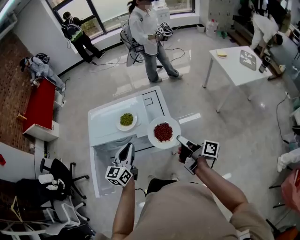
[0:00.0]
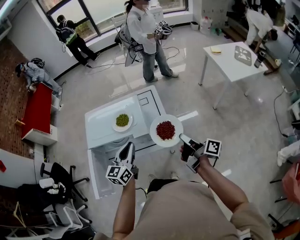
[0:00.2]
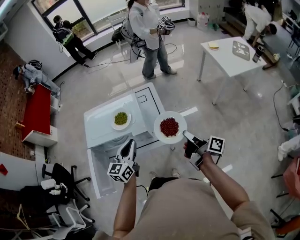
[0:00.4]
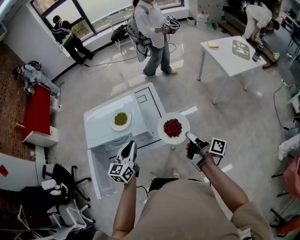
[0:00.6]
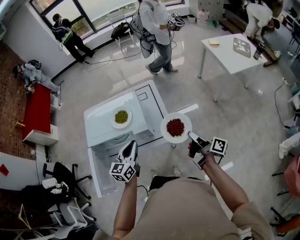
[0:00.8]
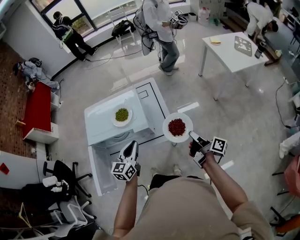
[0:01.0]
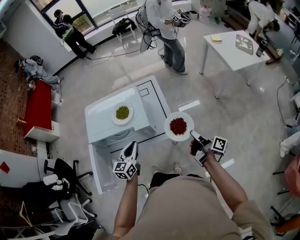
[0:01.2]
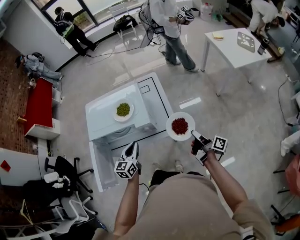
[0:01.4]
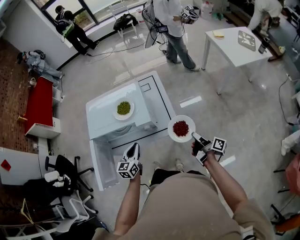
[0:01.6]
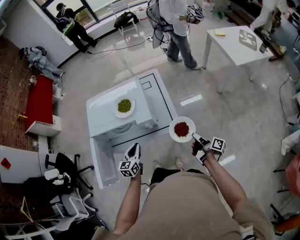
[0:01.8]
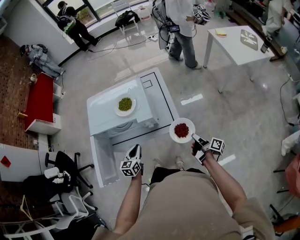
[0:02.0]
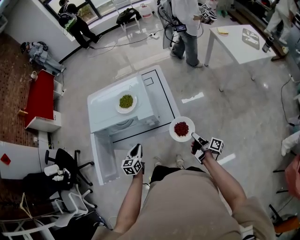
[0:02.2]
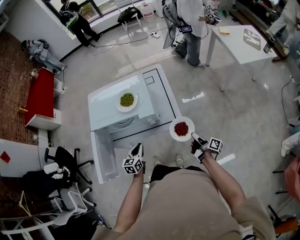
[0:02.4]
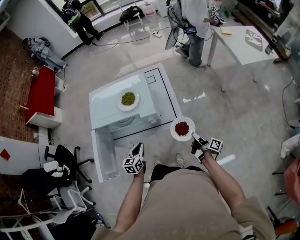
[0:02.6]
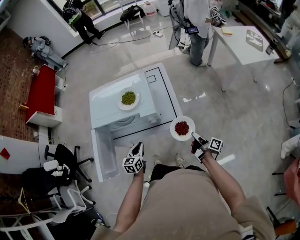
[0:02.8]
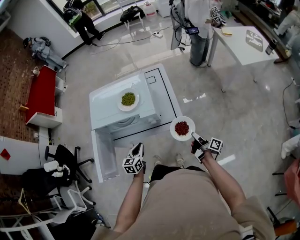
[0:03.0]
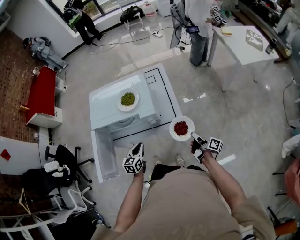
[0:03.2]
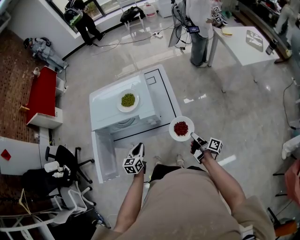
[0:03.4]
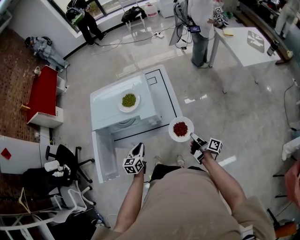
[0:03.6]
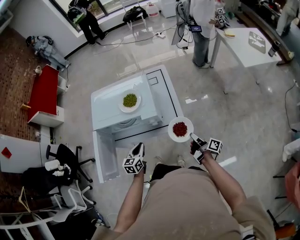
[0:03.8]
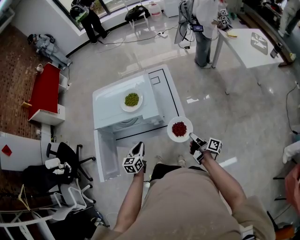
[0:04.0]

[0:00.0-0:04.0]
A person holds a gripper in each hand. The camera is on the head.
0.0 to 1.4 s: The right gripper moves downward and to the right, approximately 15 cm, while the left gripper moves downward, some 10 cm.
1.4 to 2.6 s: The two grippers go about 10 cm downward.
2.6 to 4.0 s: There are only small adjustments of the grippers.

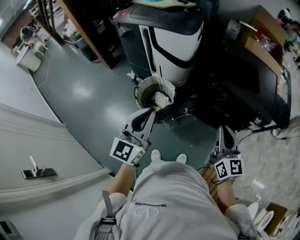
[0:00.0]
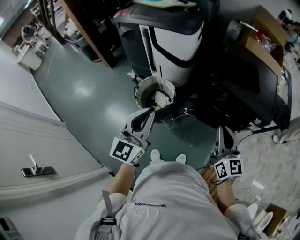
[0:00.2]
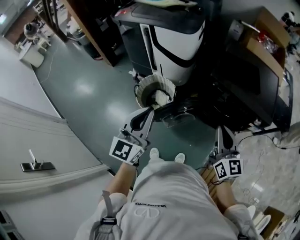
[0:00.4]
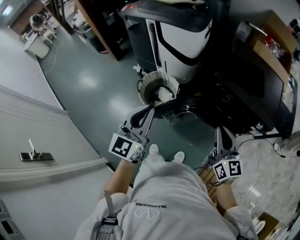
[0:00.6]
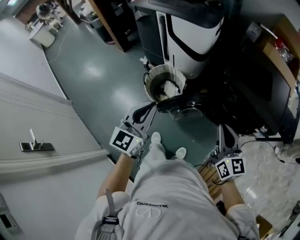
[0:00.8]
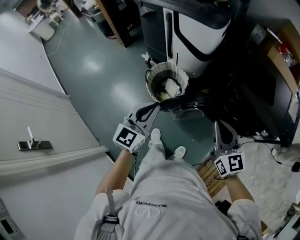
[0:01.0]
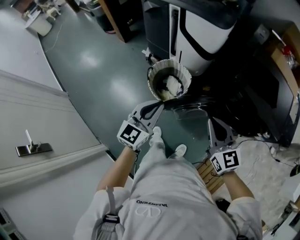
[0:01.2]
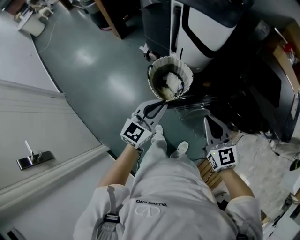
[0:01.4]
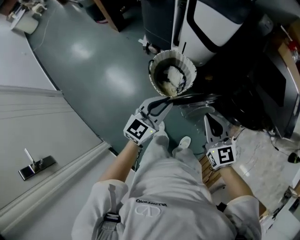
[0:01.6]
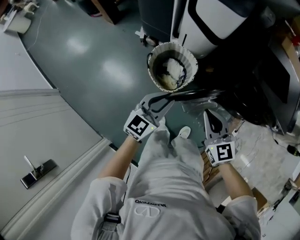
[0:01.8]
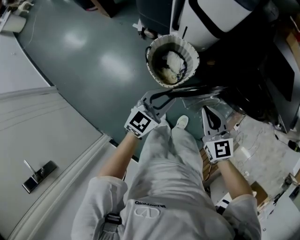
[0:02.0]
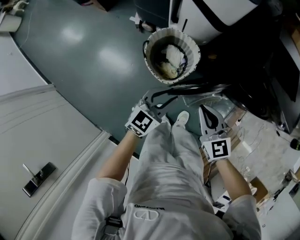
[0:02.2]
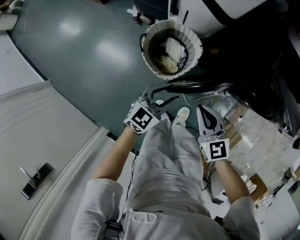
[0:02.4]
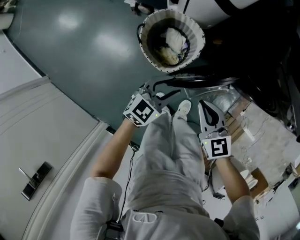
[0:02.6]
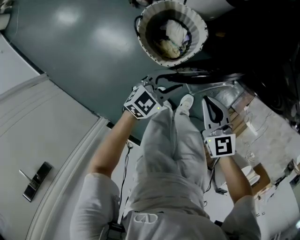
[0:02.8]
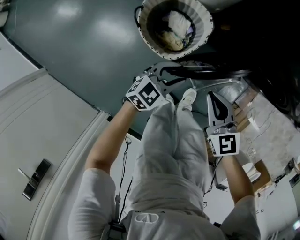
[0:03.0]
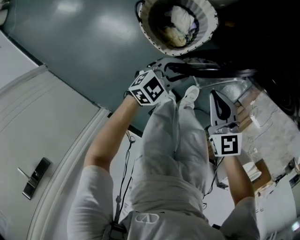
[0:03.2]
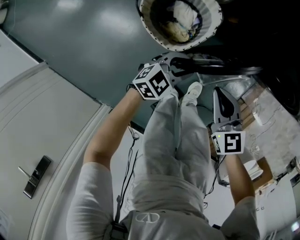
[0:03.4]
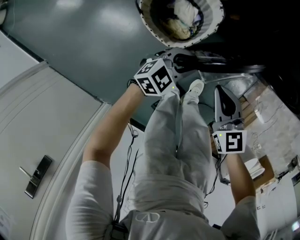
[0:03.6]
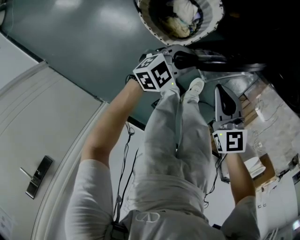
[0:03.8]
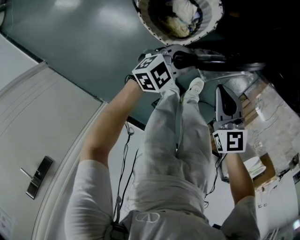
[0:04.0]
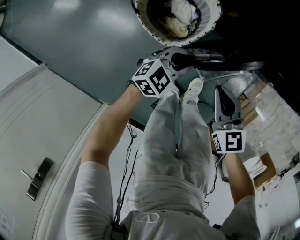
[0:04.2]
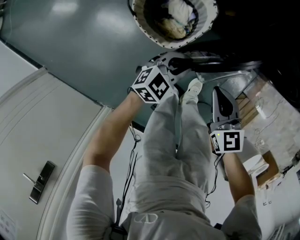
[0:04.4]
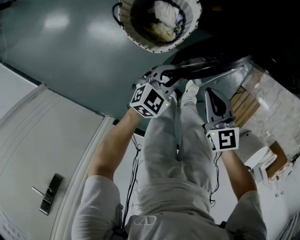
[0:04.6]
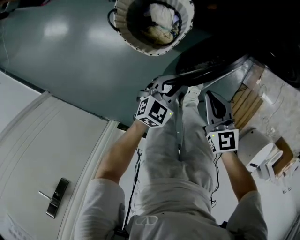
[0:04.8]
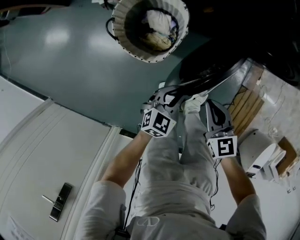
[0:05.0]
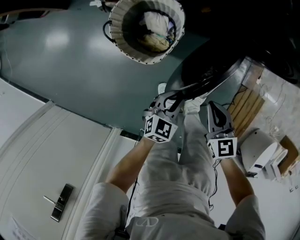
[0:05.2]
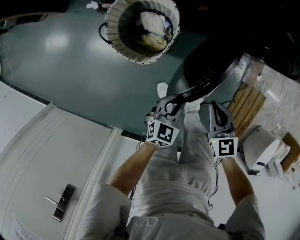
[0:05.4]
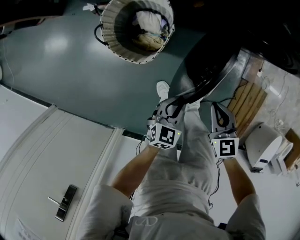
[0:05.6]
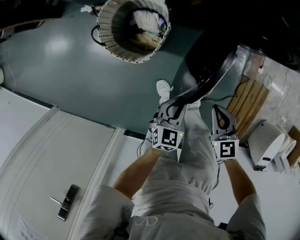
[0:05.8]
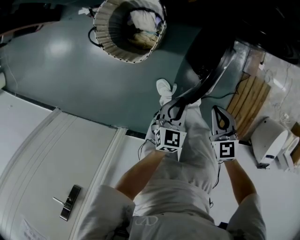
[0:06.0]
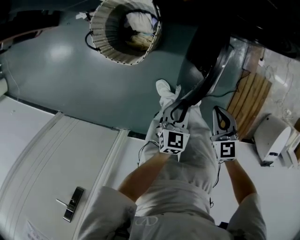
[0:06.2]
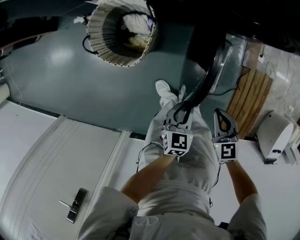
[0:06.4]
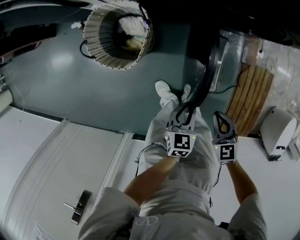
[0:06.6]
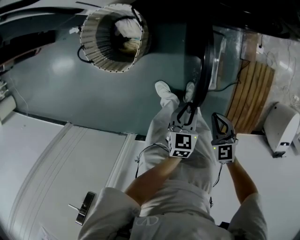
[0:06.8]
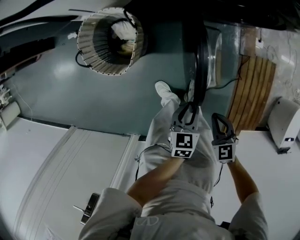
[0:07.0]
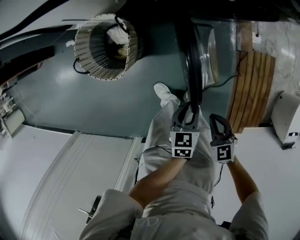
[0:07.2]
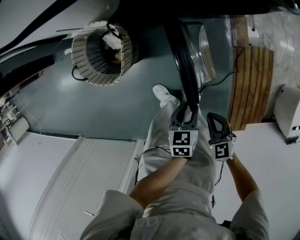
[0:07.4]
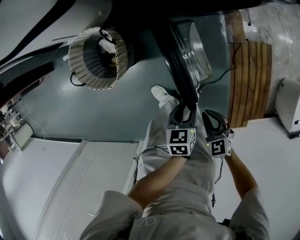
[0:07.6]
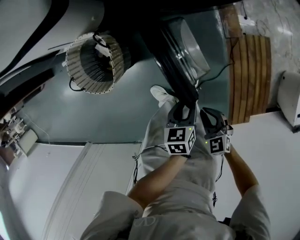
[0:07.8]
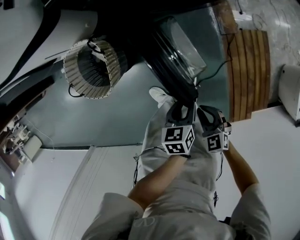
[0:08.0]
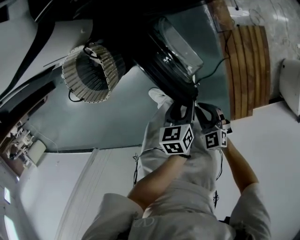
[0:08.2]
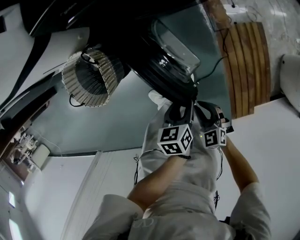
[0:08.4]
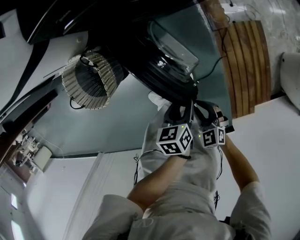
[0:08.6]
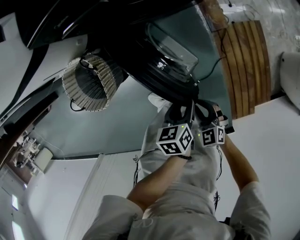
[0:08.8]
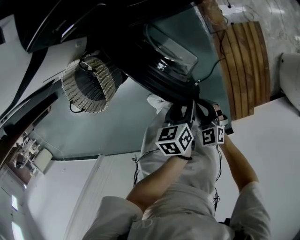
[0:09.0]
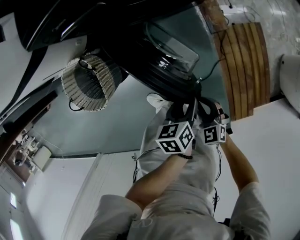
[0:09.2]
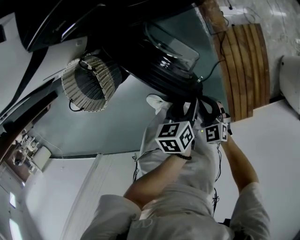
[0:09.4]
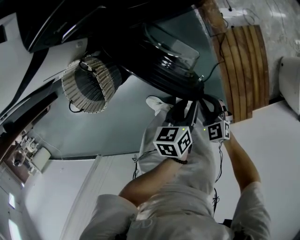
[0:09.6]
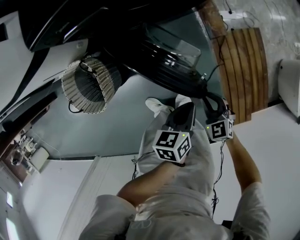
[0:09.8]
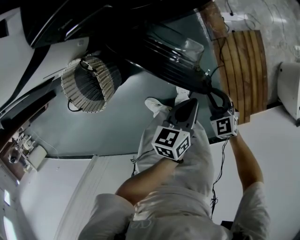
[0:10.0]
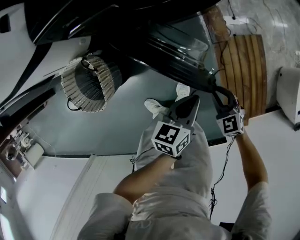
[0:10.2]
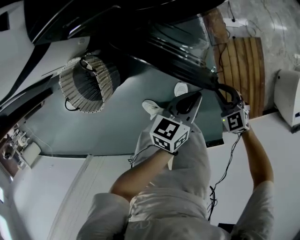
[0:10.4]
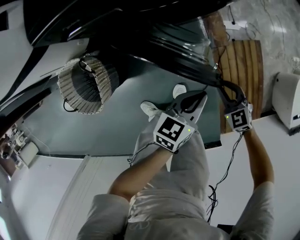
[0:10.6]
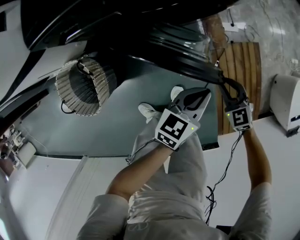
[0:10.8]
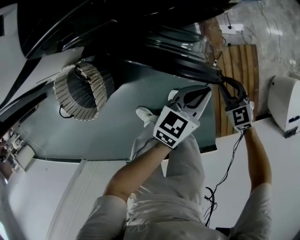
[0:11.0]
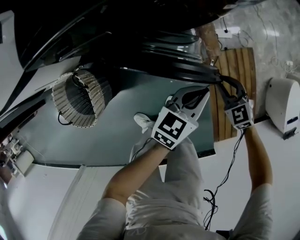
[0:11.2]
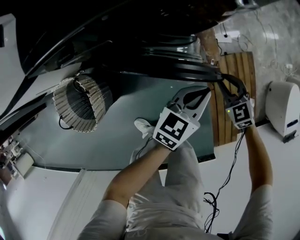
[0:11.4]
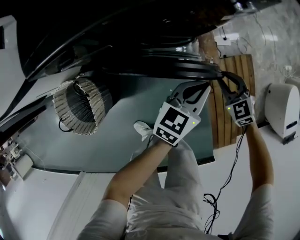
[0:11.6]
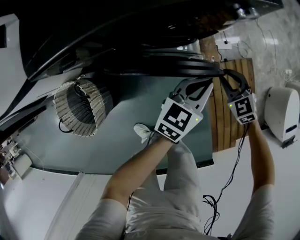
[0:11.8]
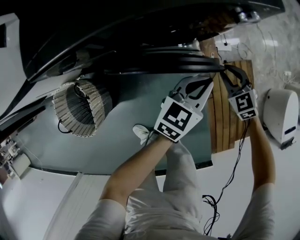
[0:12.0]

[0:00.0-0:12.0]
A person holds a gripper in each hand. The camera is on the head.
0.0 to 1.6 s: The right gripper is displaced to the left and downward by about 25 cm, and changes its angle by roughly 30 degrees. The left gripper moves downward, to the left and forward, some 20 cm.
1.6 to 3.0 s: The grippers both shift downward by roughly 30 cm. The left gripper turns by approximately 30 degrees, and opens its fingers.
3.0 to 4.4 s: The left gripper moves about 5 cm. Meanwhile the right gripper goes about 5 cm downward.
4.4 to 6.0 s: The grippers both shift to the right and backward by about 20 cm. The left gripper swivels approximately 20 degrees.
6.0 to 7.6 s: The right gripper travels to the right, backward and downward by some 15 cm, while the left gripper goes about 15 cm to the right, and turns by some 20 degrees.
7.6 to 9.0 s: The left gripper heads to the right, covering approximately 10 cm; the right gripper shifts roughly 5 cm to the right.
9.0 to 10.4 s: The right gripper moves forward and to the right, roughly 15 cm. Meanwhile the left gripper heads forward and to the right, covering approximately 10 cm, rotates roughly 30 degrees, and closes.
10.4 to 12.0 s: Both grippers travel together forward, roughly 20 cm. The left gripper swivels approximately 20 degrees.

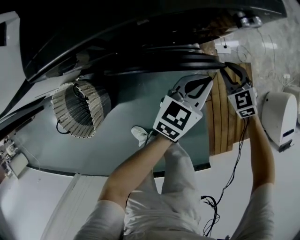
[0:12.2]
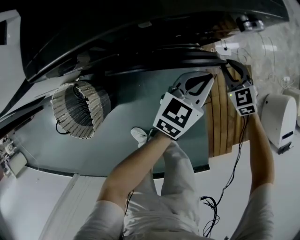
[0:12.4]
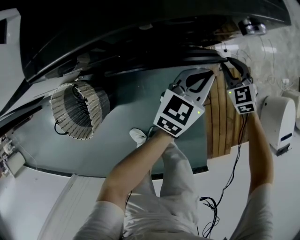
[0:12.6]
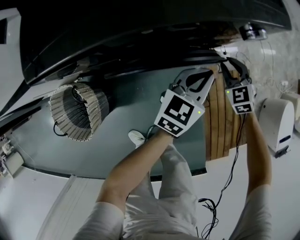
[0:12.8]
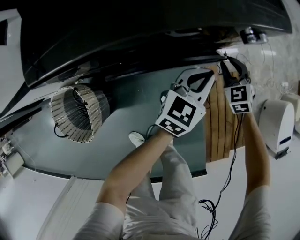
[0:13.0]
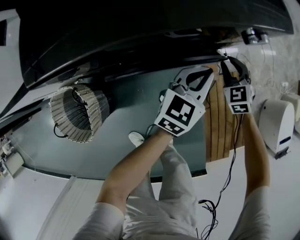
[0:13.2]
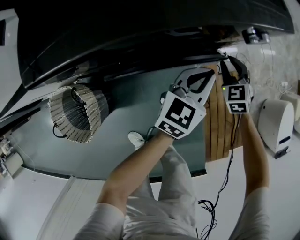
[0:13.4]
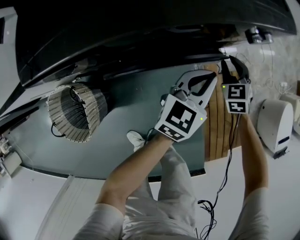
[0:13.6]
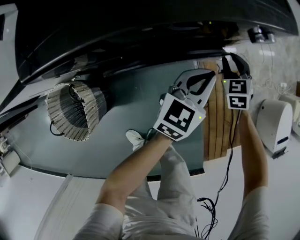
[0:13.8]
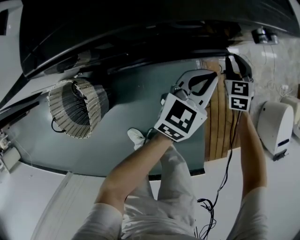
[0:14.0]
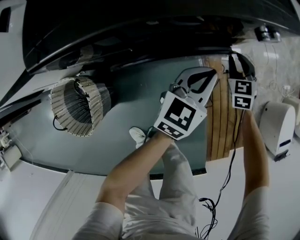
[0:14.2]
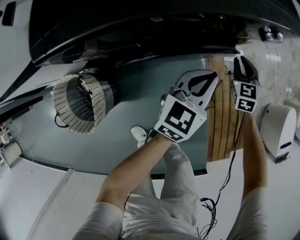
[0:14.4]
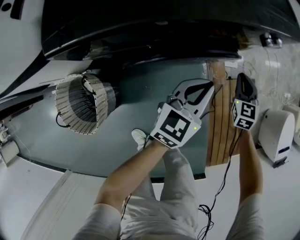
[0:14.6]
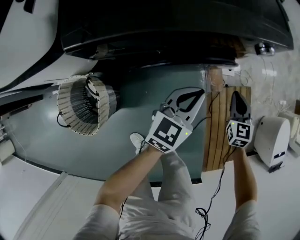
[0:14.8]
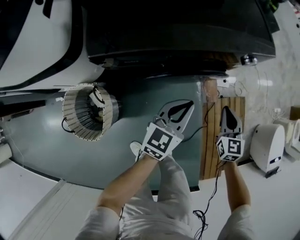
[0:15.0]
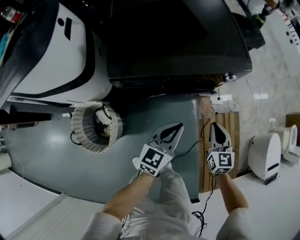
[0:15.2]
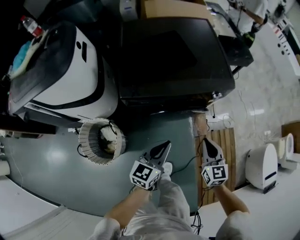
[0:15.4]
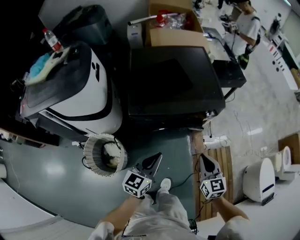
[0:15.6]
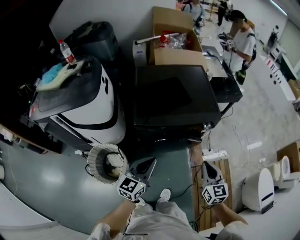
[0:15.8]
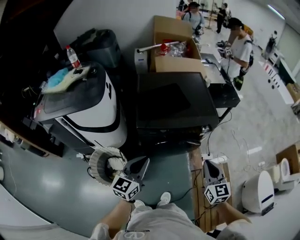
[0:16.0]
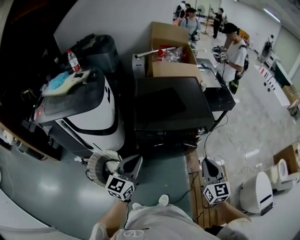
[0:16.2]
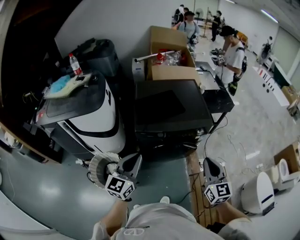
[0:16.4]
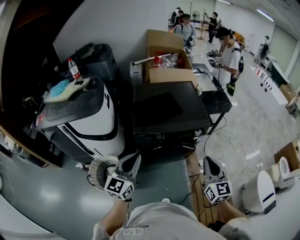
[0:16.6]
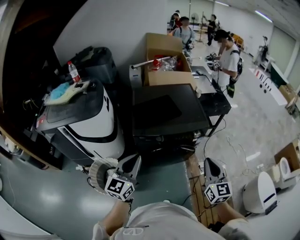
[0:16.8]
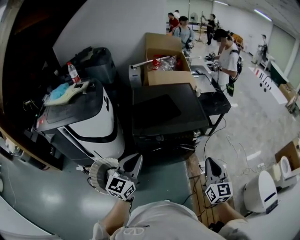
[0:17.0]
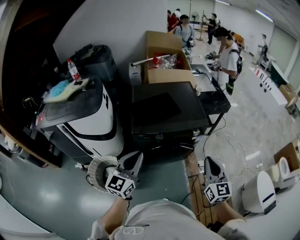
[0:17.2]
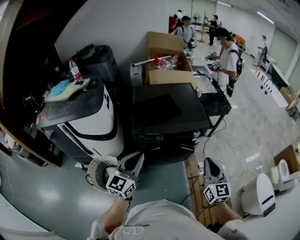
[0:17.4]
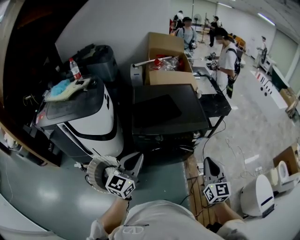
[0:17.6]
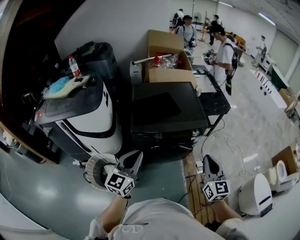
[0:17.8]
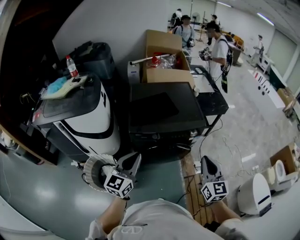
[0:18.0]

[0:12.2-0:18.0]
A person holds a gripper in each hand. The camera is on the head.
12.2 to 13.6 s: The right gripper is displaced forward by approximately 5 cm.
13.6 to 15.0 s: The left gripper is displaced backward, to the left and upward by about 15 cm; the right gripper shifts roughly 20 cm backward and upward, turns by about 30 degrees, and closes its fingers.
15.0 to 16.6 s: The left gripper heads upward, backward and to the left, covering about 50 cm, and changes its angle by approximately 30 degrees. The right gripper heads upward, covering roughly 40 cm, and turns by some 30 degrees.
16.6 to 18.0 s: The grippers move only a little.

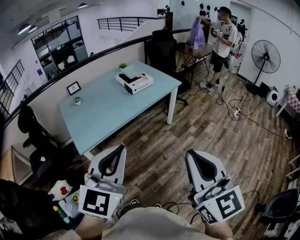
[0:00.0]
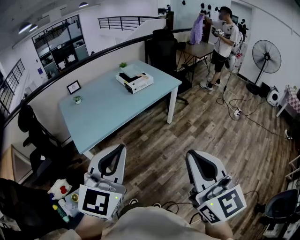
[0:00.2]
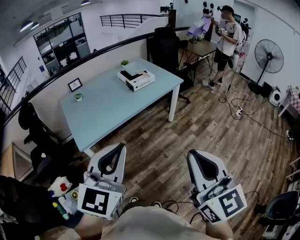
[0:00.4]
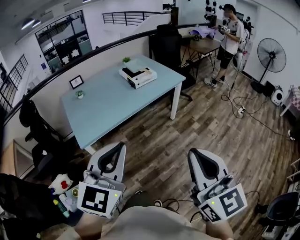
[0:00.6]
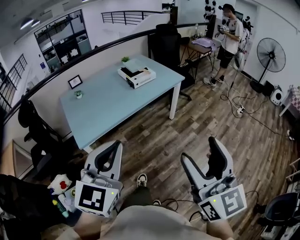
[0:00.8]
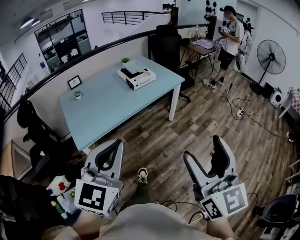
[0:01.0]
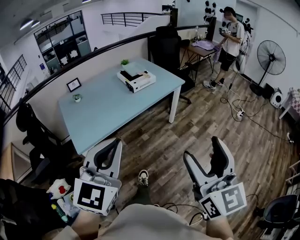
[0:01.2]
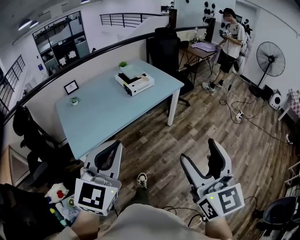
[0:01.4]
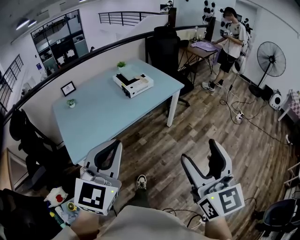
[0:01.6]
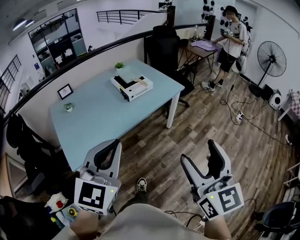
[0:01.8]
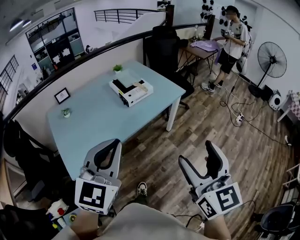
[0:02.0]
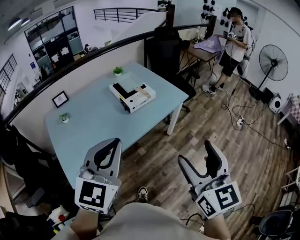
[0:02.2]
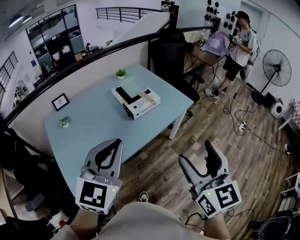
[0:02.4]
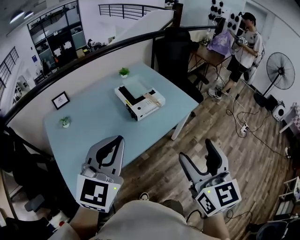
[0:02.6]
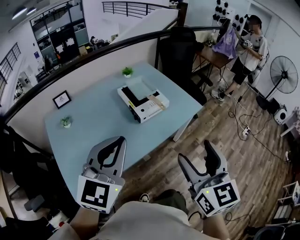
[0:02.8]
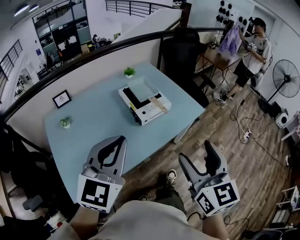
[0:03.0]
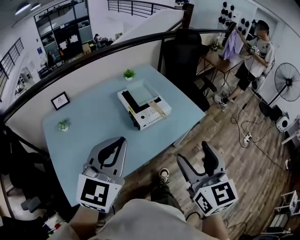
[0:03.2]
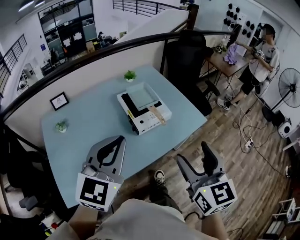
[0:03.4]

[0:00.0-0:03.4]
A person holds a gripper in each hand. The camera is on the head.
0.0 to 1.6 s: Both grippers move forward, some 15 cm. The right gripper opens its fingers.
1.6 to 3.4 s: Both grippers are carried forward, roughly 50 cm.
